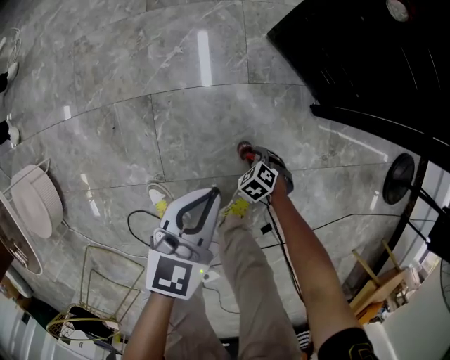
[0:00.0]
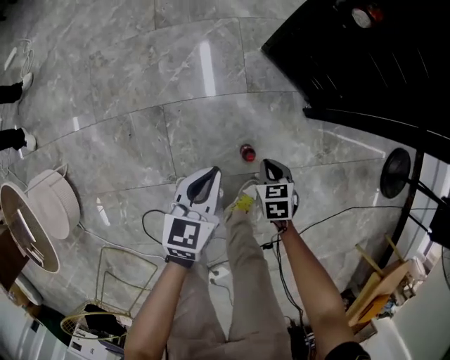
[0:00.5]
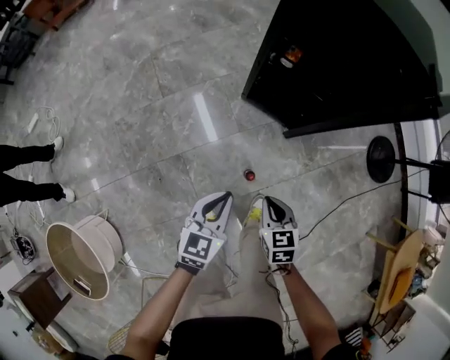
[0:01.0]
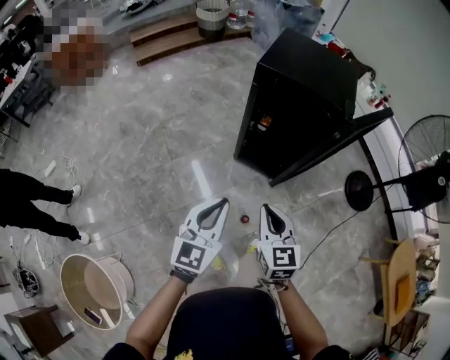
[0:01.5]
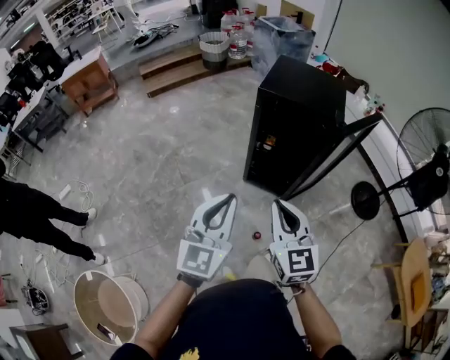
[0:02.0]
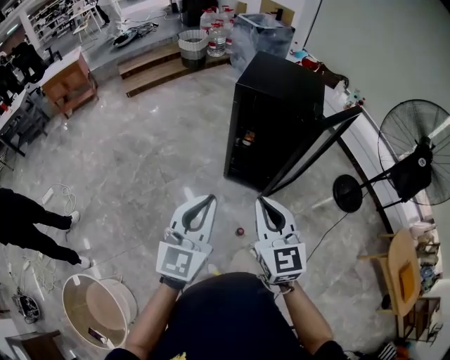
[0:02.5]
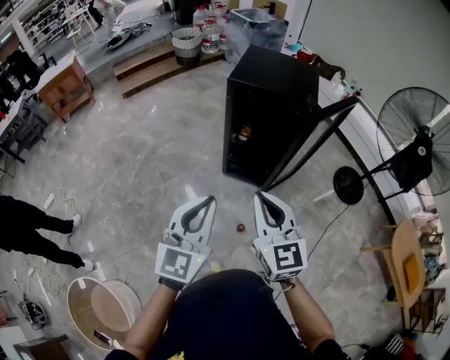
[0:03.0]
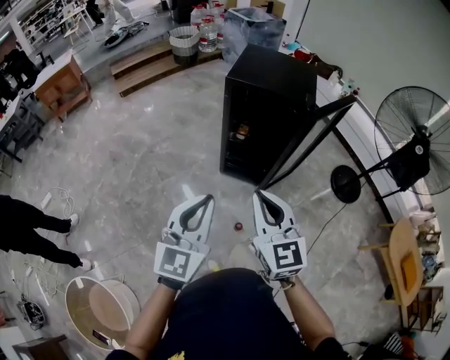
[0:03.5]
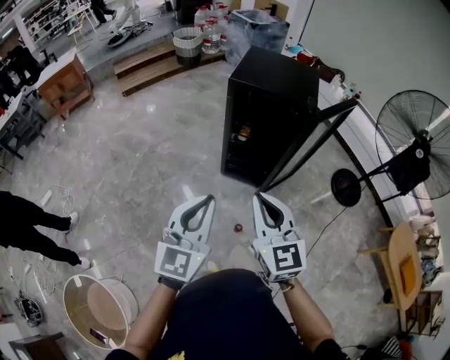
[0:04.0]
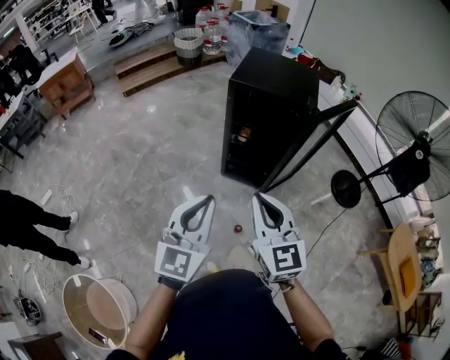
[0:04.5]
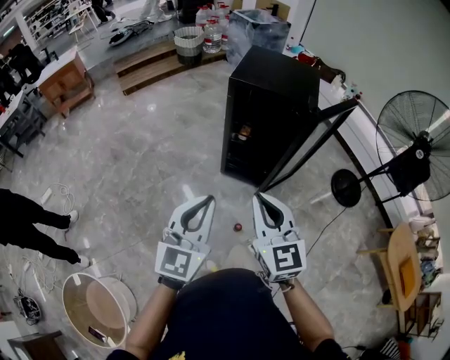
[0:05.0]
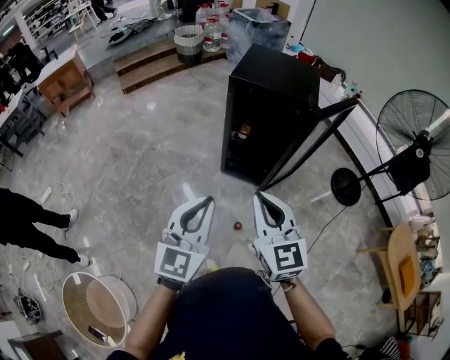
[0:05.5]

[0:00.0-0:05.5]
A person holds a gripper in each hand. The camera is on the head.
0:00.0 to 0:02.0: Both grippers travel together upward, some 90 cm. The left gripper points its fingers about 30 degrees further upward. The right gripper tilts its fingers approximately 70 degrees upward, and closes.
0:02.0 to 0:05.5: The grippers stay close to where they were, moving slightly.

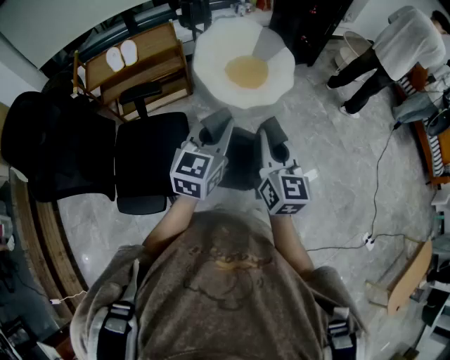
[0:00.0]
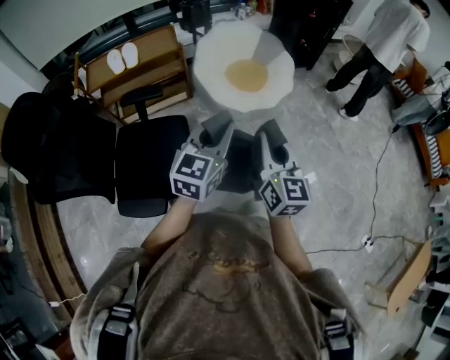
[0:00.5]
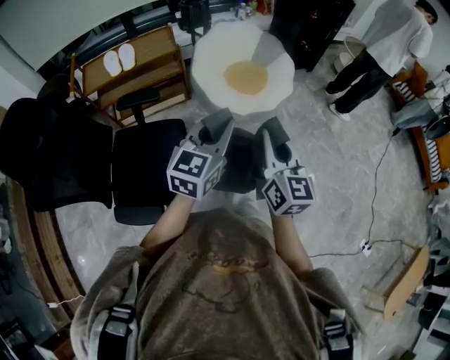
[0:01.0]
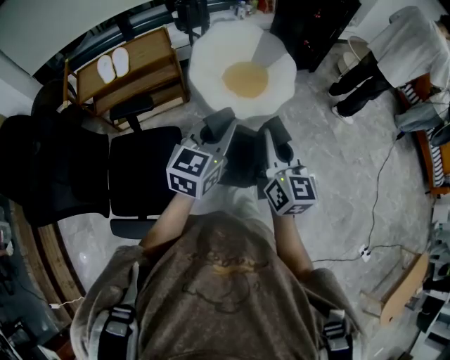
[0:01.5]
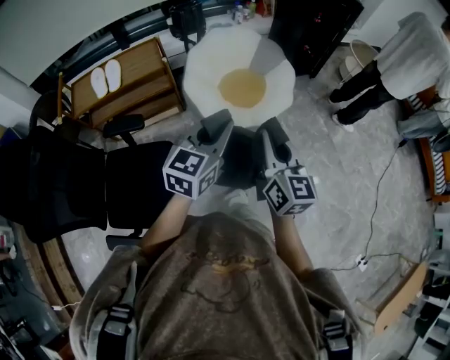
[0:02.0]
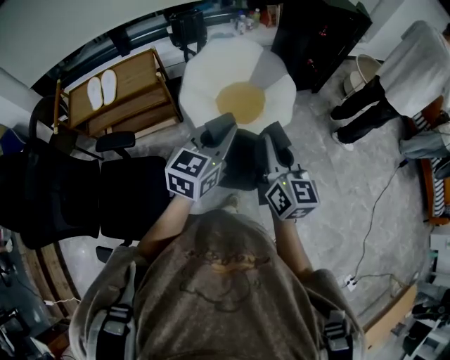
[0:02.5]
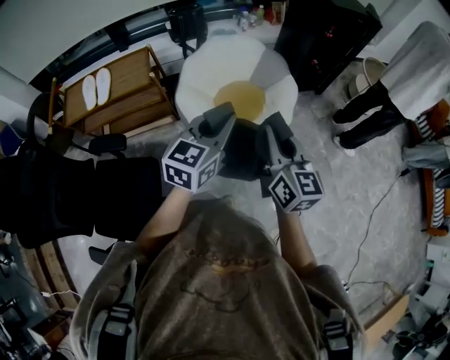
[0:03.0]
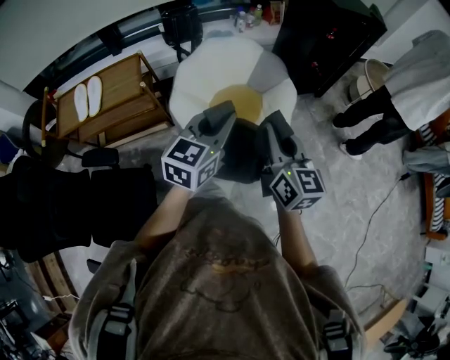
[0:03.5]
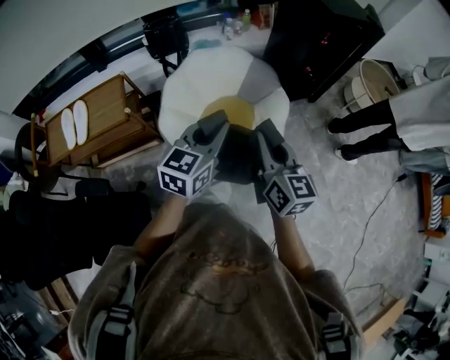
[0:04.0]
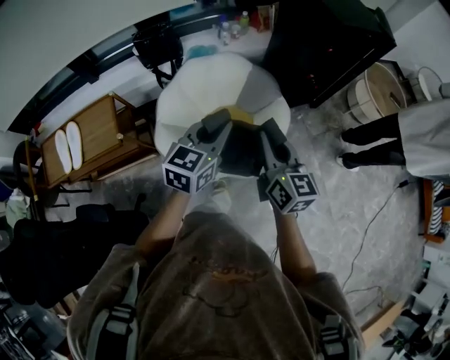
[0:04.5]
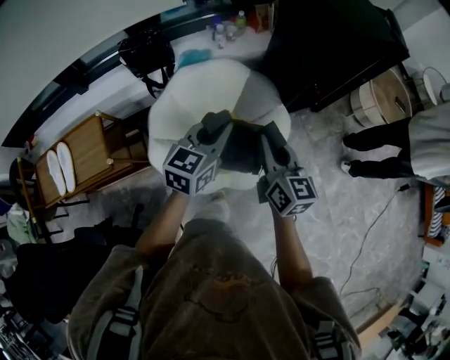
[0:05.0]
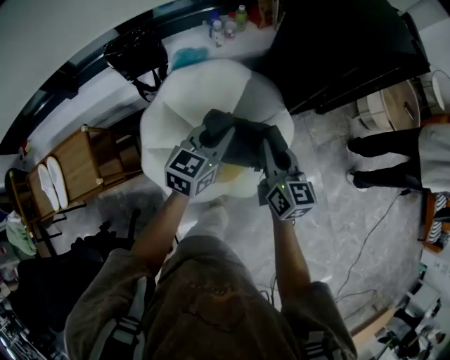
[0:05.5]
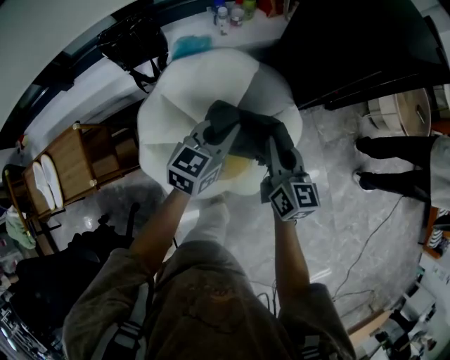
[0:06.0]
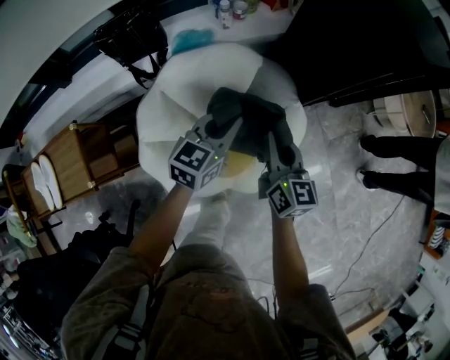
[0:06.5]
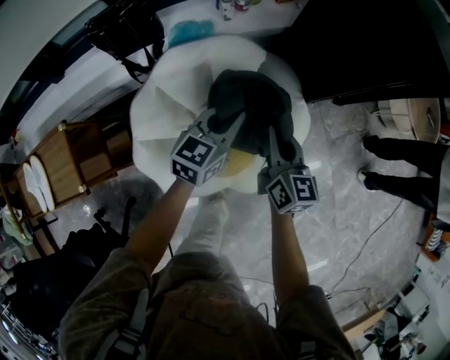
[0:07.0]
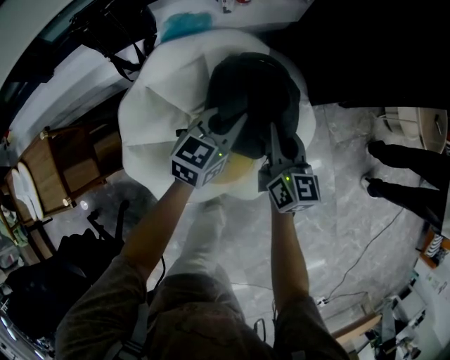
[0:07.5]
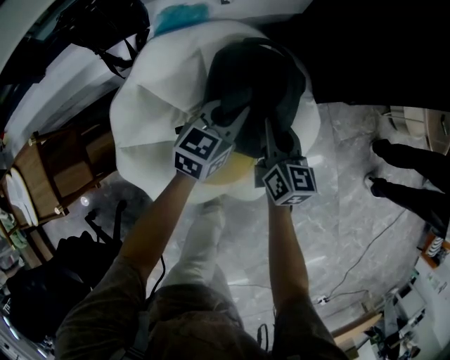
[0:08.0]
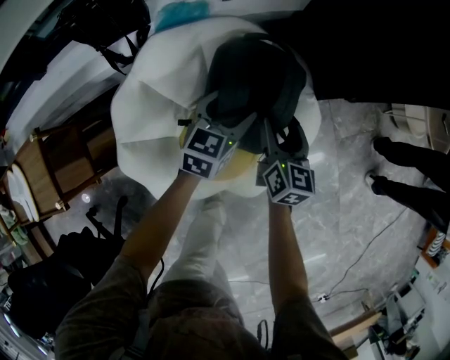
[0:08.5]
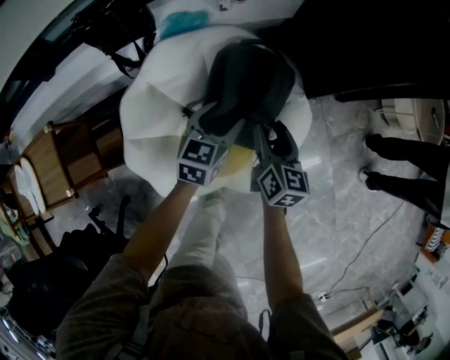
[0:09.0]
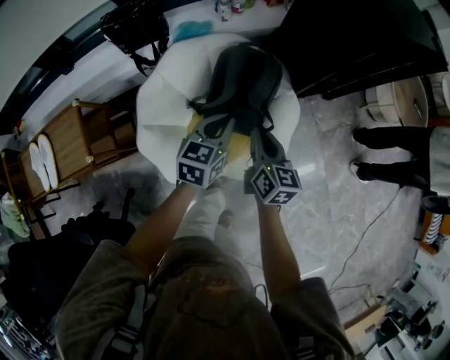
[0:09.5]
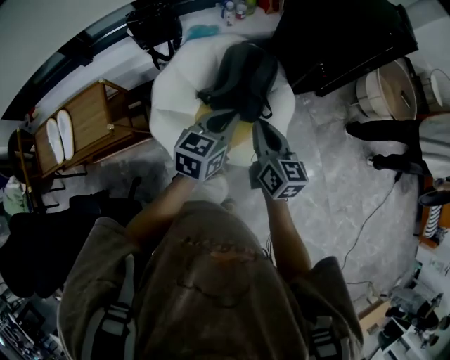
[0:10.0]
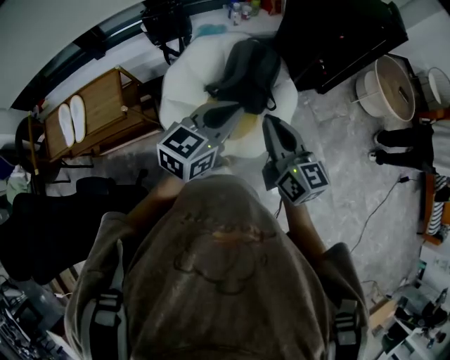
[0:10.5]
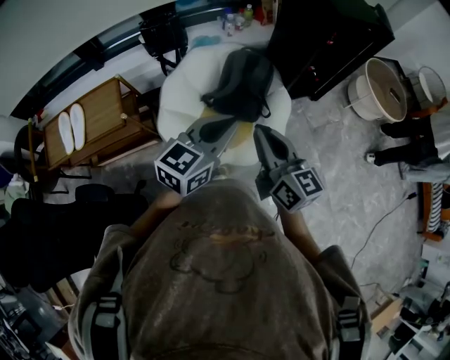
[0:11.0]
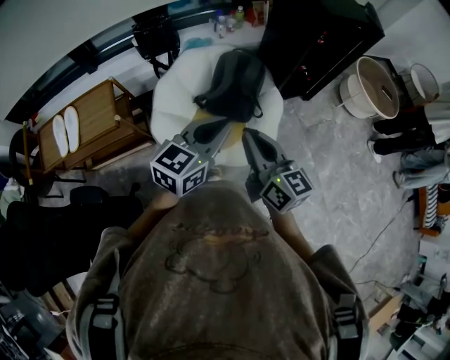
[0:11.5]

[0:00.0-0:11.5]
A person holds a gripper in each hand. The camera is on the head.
0:00.0 to 0:02.0: The two grippers go about 20 cm forward.
0:02.0 to 0:04.0: The grippers both shift forward by roughly 35 cm.
0:04.0 to 0:06.0: Both grippers travel together forward and downward, roughly 40 cm.
0:06.0 to 0:07.5: The grippers both shift downward and forward by about 15 cm.
0:07.5 to 0:09.5: Both grippers travel together backward and upward, roughly 15 cm. The right gripper opens, then closes once more; the left gripper opens, then closes once more.
0:09.5 to 0:11.5: The two grippers go approximately 35 cm backward and upward. The left gripper rotates about 20 degrees, while the right gripper turns by roughly 20 degrees.

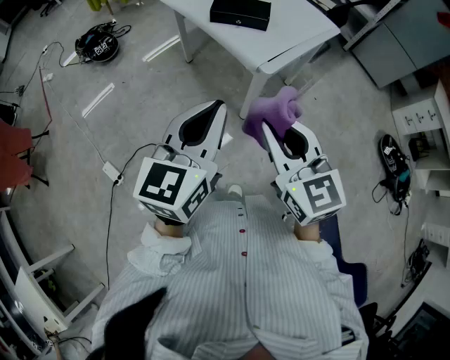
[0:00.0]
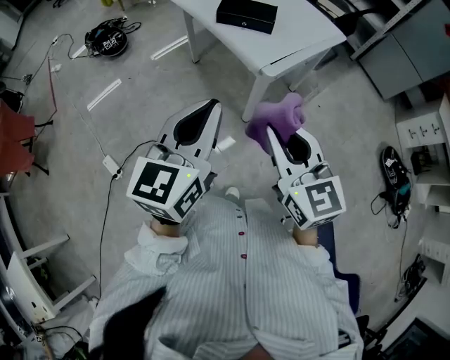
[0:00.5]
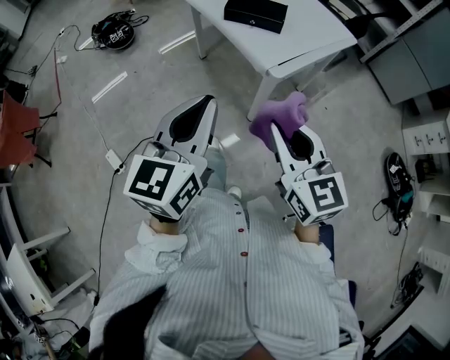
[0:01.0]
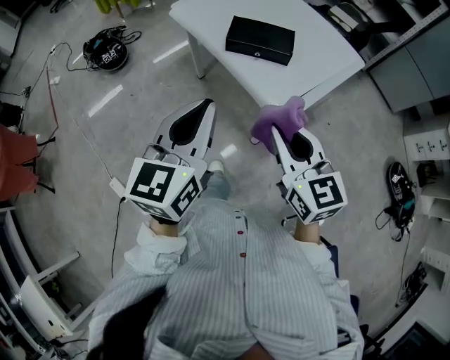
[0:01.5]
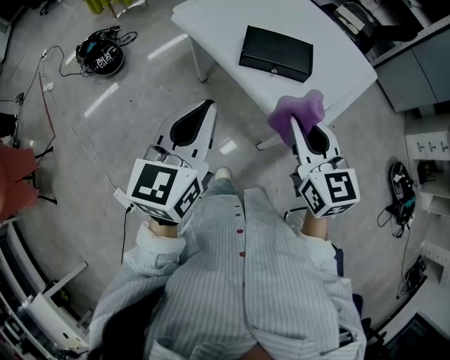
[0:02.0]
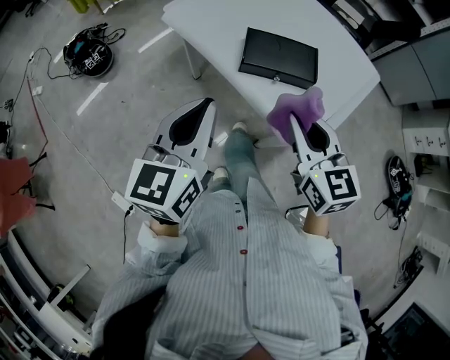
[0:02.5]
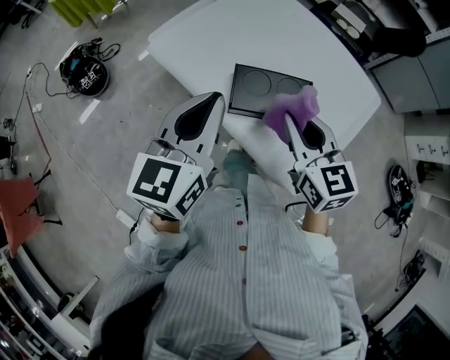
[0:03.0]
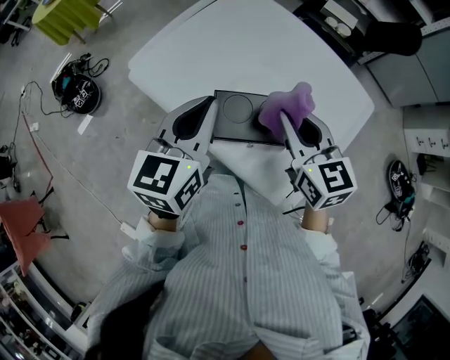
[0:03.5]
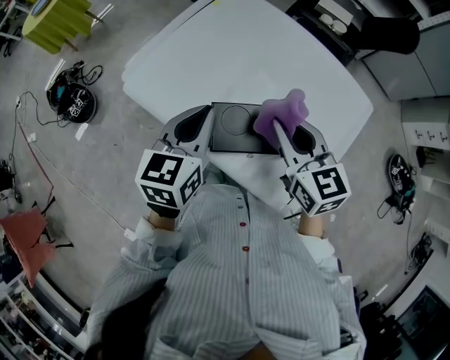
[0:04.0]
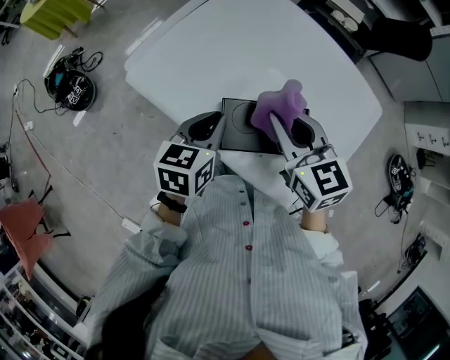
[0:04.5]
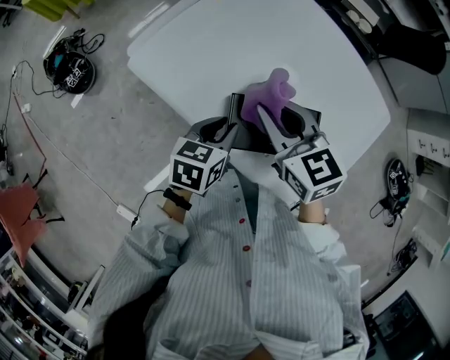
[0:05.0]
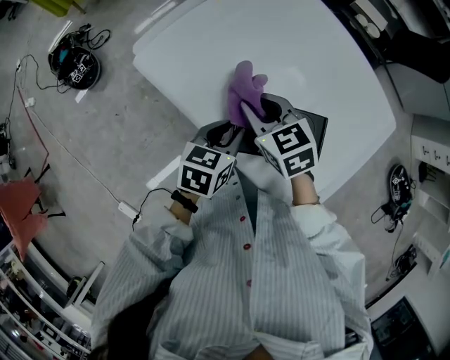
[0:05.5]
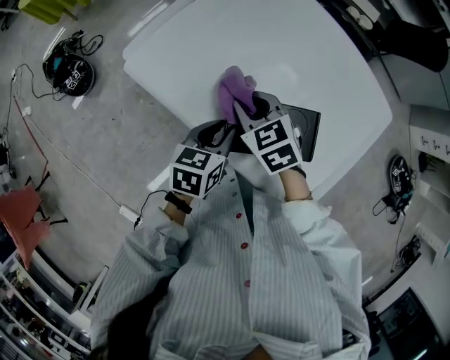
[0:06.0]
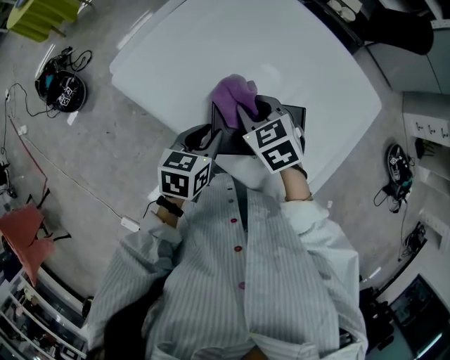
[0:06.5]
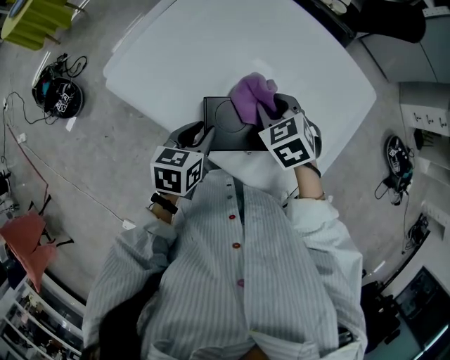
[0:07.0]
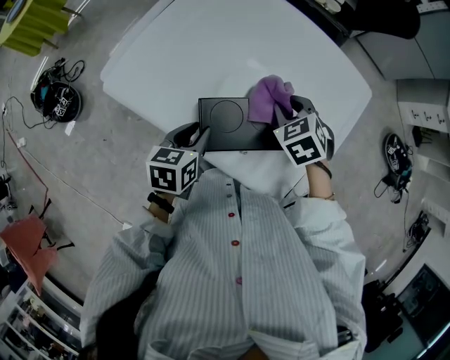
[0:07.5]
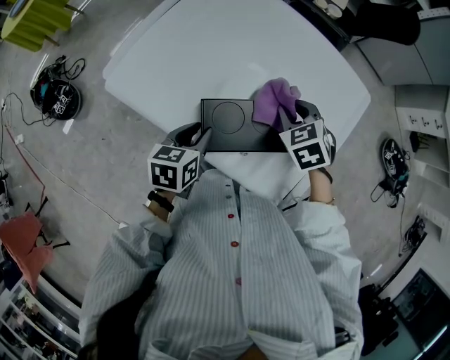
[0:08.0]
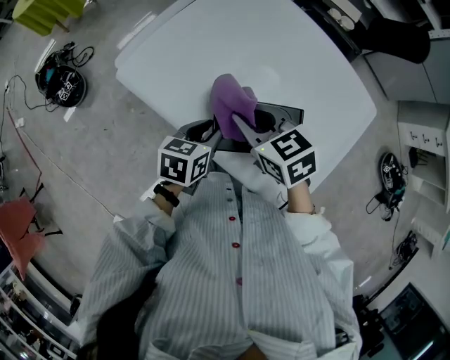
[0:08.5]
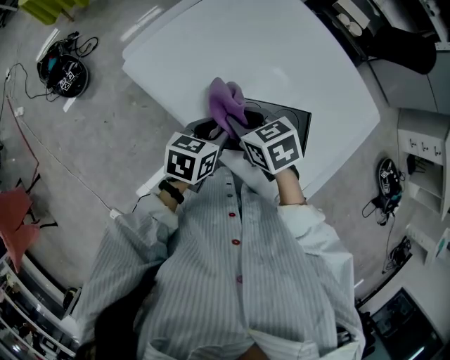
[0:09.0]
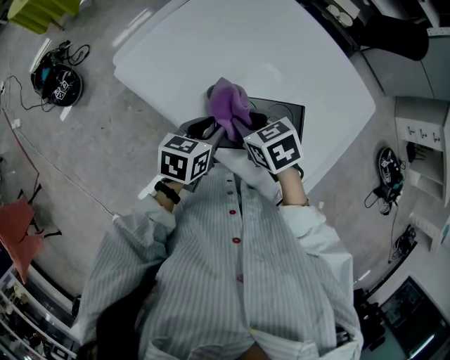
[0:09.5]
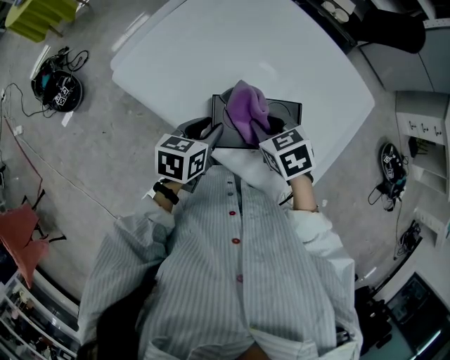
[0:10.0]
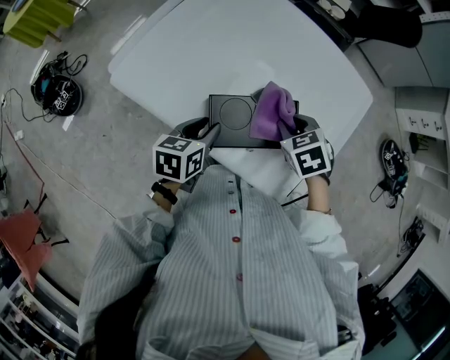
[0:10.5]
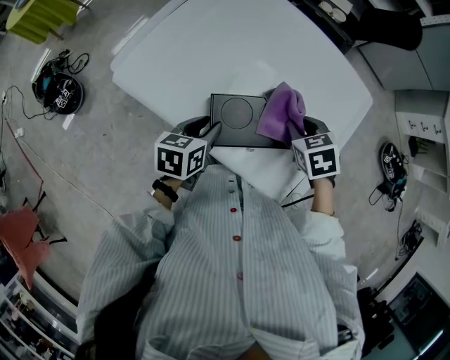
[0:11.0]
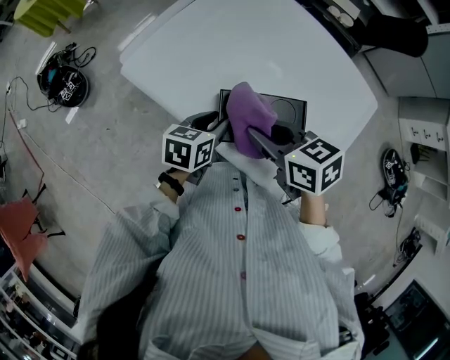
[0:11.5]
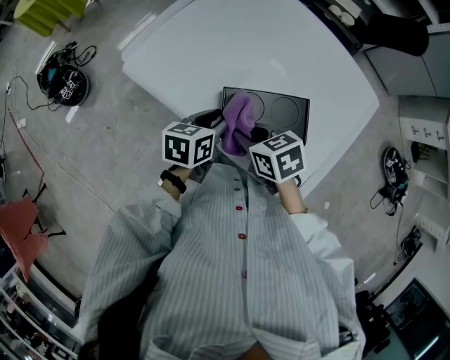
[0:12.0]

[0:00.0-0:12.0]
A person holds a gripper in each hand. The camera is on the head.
0:00.0 to 0:02.0: Both grippers travel together forward, approximately 30 cm.
0:02.0 to 0:04.0: The two grippers go approximately 35 cm forward.
0:04.0 to 0:06.0: The right gripper travels downward and to the left by approximately 20 cm, and changes its angle by roughly 30 degrees. The left gripper travels downward by some 15 cm, and changes its angle by some 20 degrees.
0:06.0 to 0:08.0: The right gripper moves to the right, about 20 cm, and changes its angle by approximately 20 degrees.
0:08.0 to 0:10.0: The right gripper heads to the left, covering some 10 cm.
0:10.0 to 0:12.0: The right gripper is displaced to the left and backward by some 10 cm.
